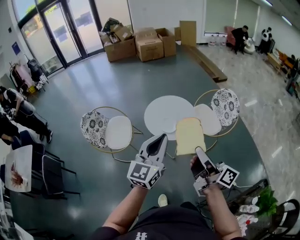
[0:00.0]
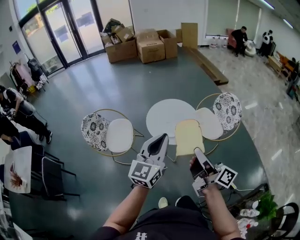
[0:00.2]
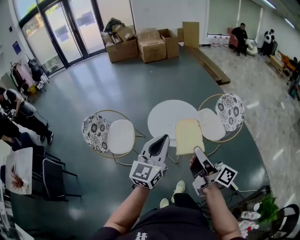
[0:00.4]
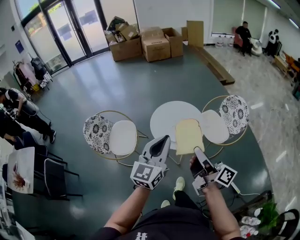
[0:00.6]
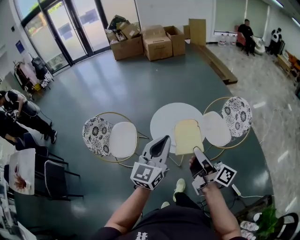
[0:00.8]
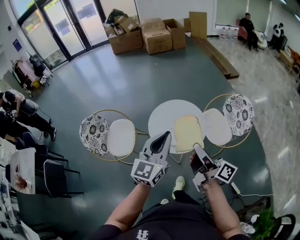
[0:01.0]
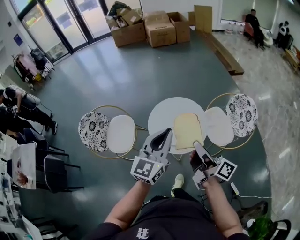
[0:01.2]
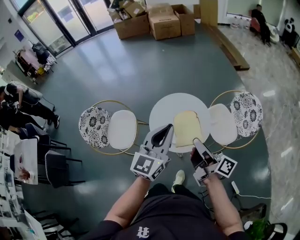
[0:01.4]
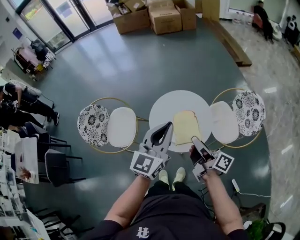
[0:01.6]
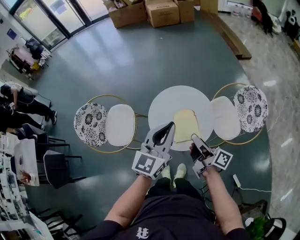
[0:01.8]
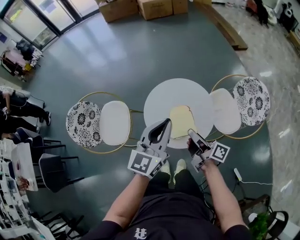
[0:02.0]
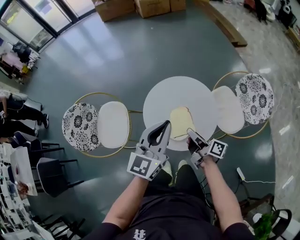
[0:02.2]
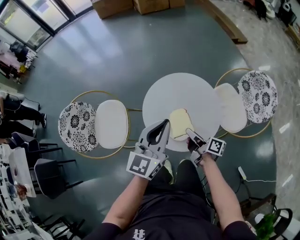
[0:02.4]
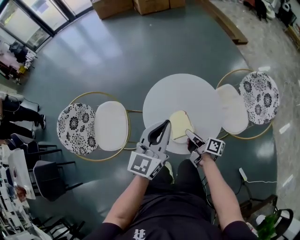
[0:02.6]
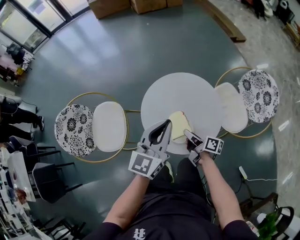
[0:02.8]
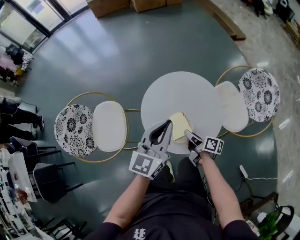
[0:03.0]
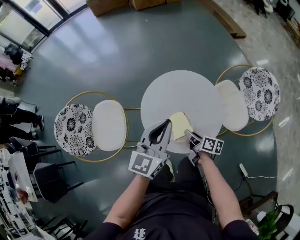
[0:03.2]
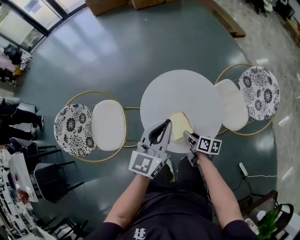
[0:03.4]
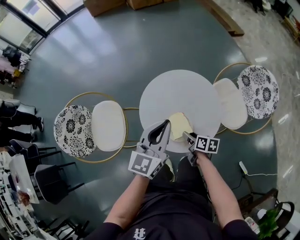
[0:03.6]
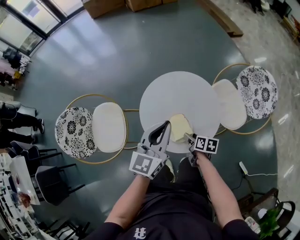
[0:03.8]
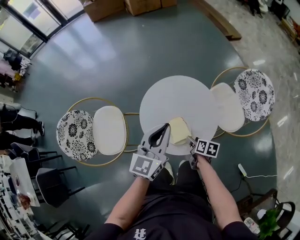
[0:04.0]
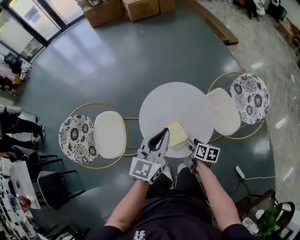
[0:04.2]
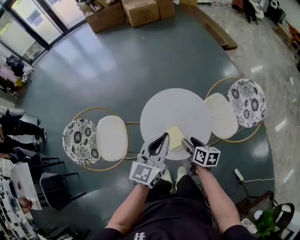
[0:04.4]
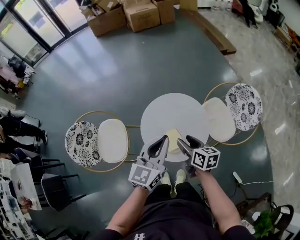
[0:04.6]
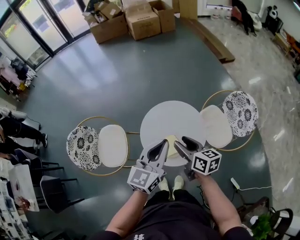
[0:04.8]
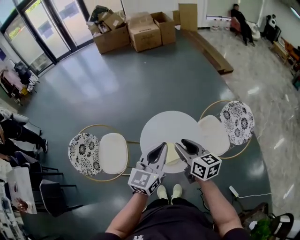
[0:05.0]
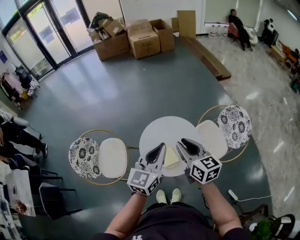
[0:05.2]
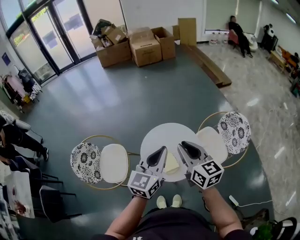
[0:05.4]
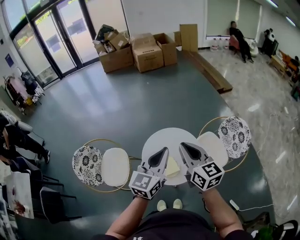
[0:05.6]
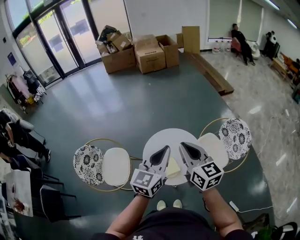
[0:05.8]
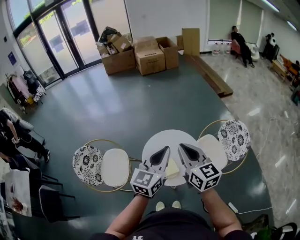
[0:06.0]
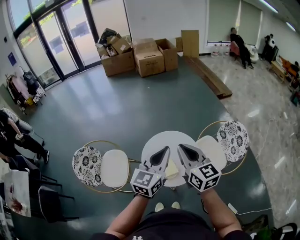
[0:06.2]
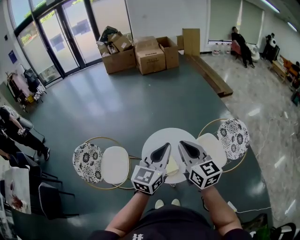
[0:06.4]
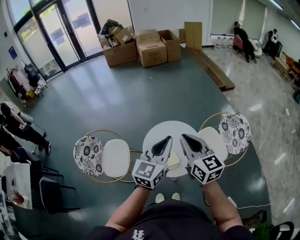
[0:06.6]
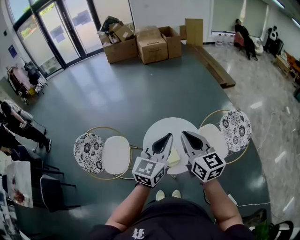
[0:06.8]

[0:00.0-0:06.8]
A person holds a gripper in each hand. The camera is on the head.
0:00.0 to 0:01.4: Both grippers move forward, approximately 25 cm.
0:01.4 to 0:02.8: The right gripper goes some 40 cm downward, and swivels some 30 degrees, while the left gripper goes some 25 cm downward and forward.
0:02.8 to 0:04.0: The right gripper ends up roughly 5 cm from where it was, tilts its fingers about 30 degrees downward, and opens.
0:04.0 to 0:05.4: The right gripper travels upward by roughly 50 cm, tilts its fingers roughly 40 degrees upward, and closes, while the left gripper goes some 20 cm upward.
0:05.4 to 0:06.8: The right gripper shifts by roughly 5 cm.

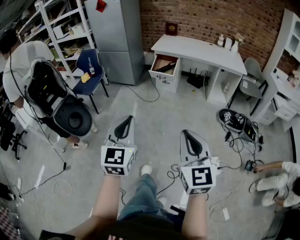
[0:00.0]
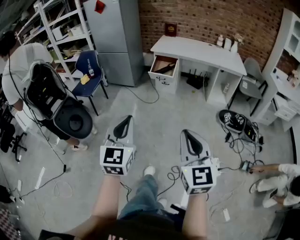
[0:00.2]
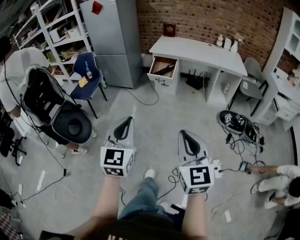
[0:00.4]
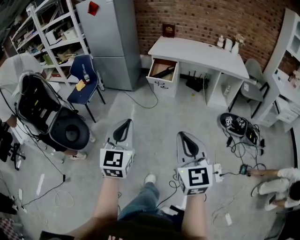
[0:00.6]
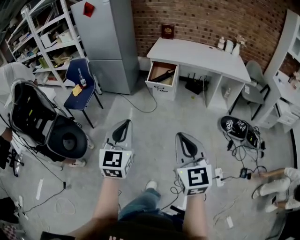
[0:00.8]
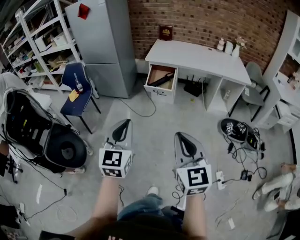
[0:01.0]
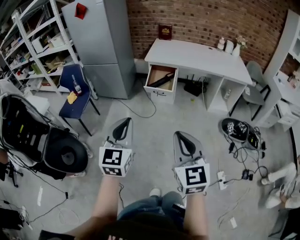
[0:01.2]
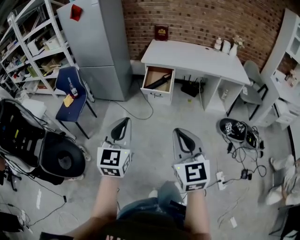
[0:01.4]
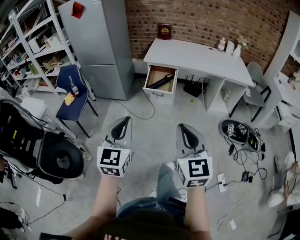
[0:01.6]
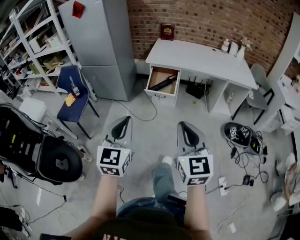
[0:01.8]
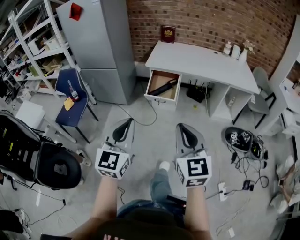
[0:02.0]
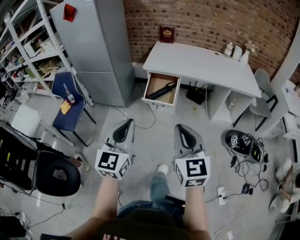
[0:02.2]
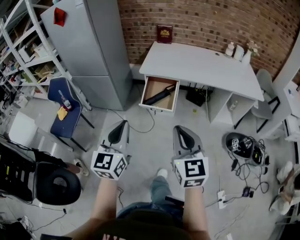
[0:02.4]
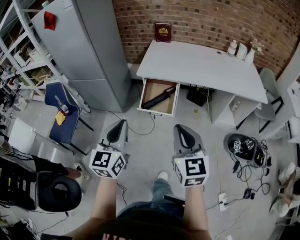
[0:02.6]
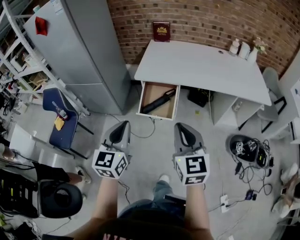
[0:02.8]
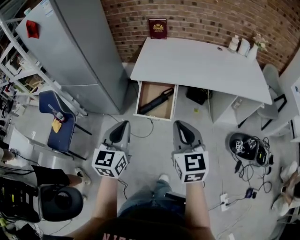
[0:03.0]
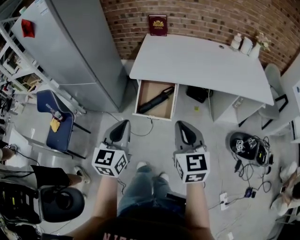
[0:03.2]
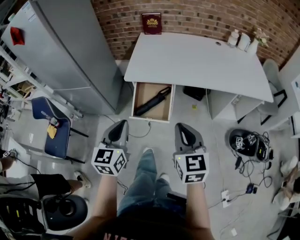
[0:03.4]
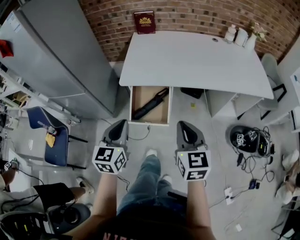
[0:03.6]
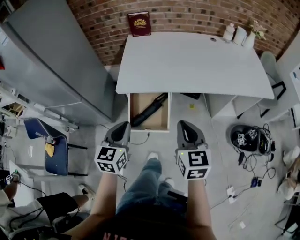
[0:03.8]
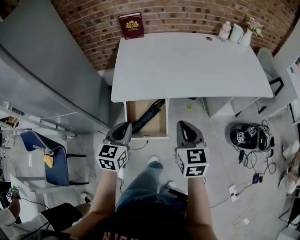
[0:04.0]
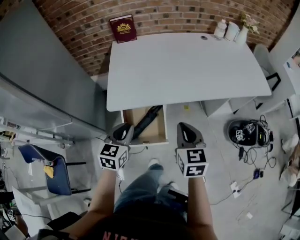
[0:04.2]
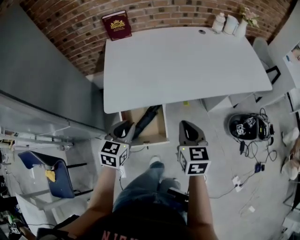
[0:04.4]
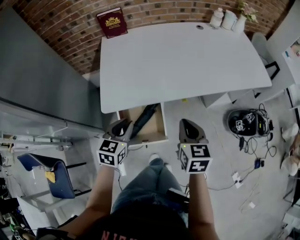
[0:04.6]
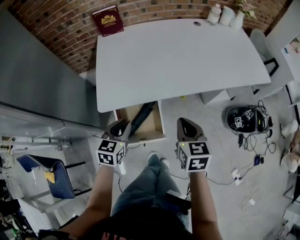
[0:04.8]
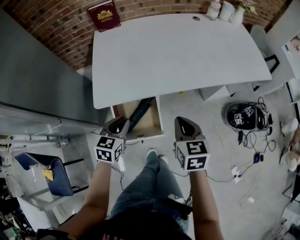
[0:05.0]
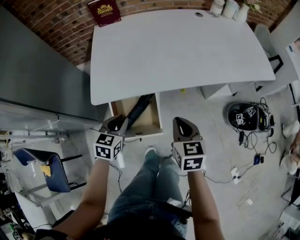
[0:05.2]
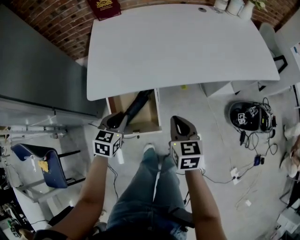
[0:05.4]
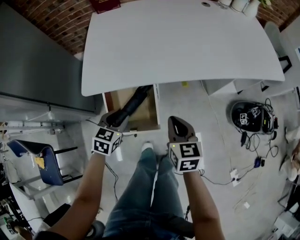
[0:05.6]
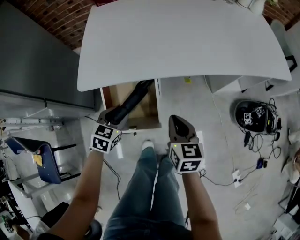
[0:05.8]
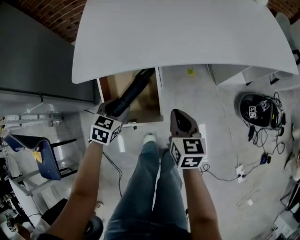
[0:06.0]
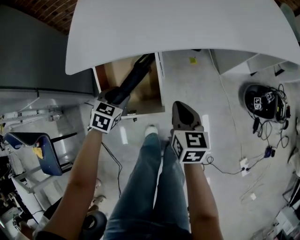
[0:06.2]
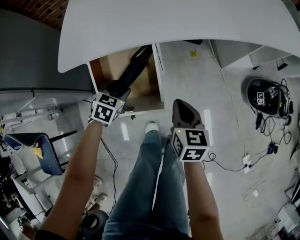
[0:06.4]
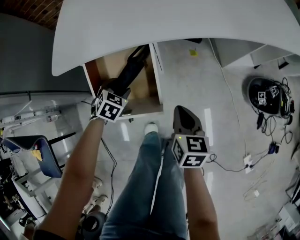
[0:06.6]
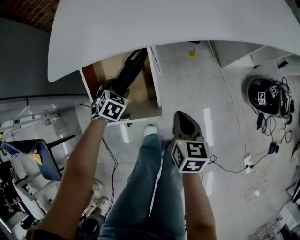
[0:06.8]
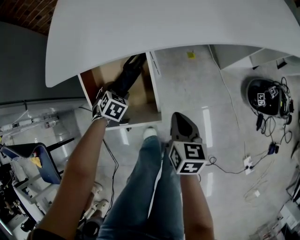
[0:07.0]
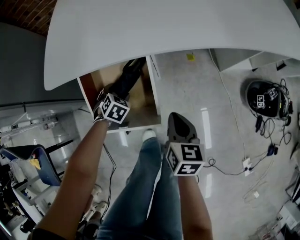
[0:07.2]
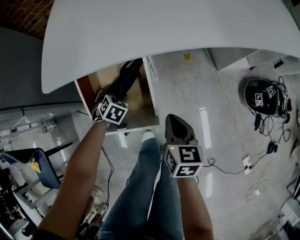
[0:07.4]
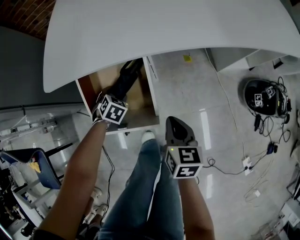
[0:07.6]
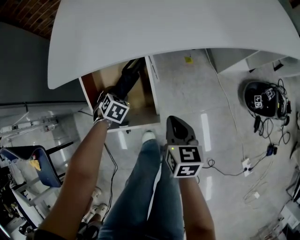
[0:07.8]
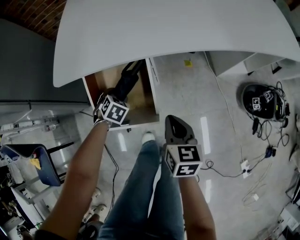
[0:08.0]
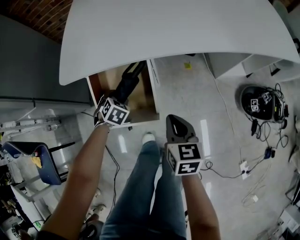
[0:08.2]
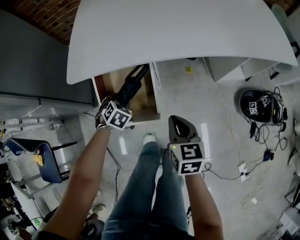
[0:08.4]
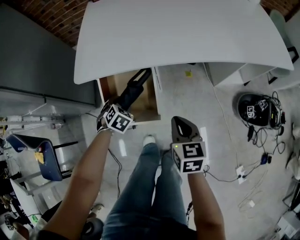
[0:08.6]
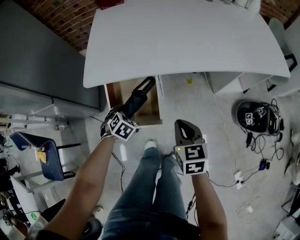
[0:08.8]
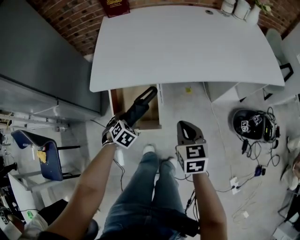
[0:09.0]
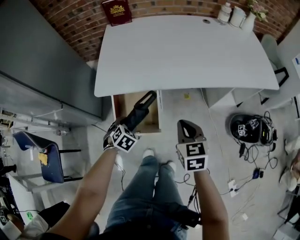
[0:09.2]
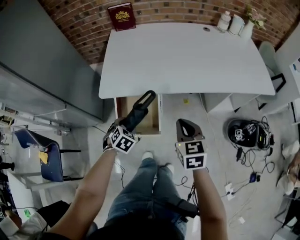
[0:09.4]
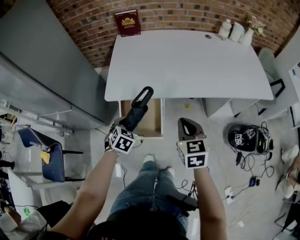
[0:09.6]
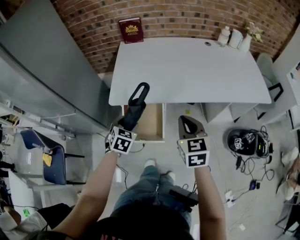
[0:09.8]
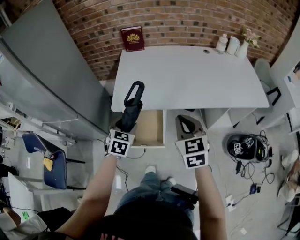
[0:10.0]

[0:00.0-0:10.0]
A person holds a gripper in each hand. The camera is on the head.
0:00.0 to 0:01.4: Both grippers travel together forward, approximately 35 cm.
0:01.4 to 0:02.8: Both grippers are carried forward, approximately 40 cm.
0:02.8 to 0:04.2: The right gripper shifts approximately 30 cm forward, and swivels roughly 30 degrees, while the left gripper is displaced forward and downward by approximately 40 cm, and changes its angle by roughly 30 degrees.
0:04.2 to 0:05.8: The grippers both shift downward by some 20 cm. The left gripper turns by some 20 degrees, and opens up.
0:05.8 to 0:07.2: The left gripper heads downward, covering roughly 20 cm, changes its angle by about 30 degrees, and opens, while the right gripper travels downward by approximately 15 cm.
0:07.2 to 0:08.6: The left gripper moves upward and backward, roughly 15 cm. Meanwhile the right gripper goes roughly 10 cm upward.
0:08.6 to 0:10.0: Both grippers move upward, approximately 30 cm. The left gripper changes its angle by approximately 30 degrees. Meanwhile the right gripper changes its angle by some 30 degrees.

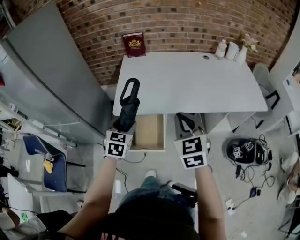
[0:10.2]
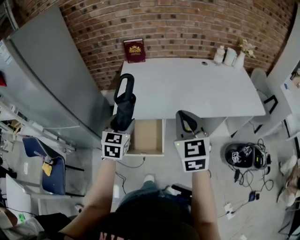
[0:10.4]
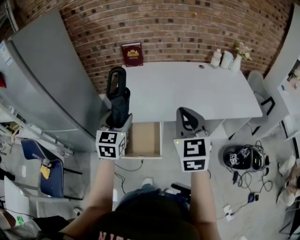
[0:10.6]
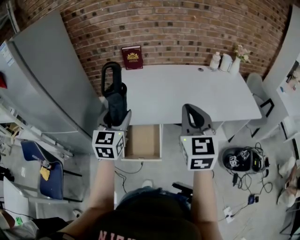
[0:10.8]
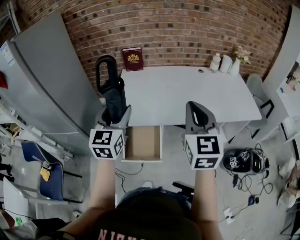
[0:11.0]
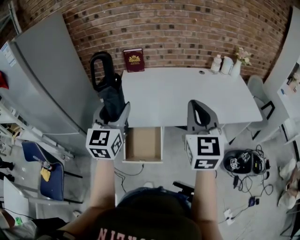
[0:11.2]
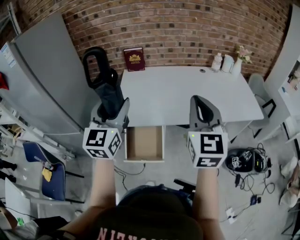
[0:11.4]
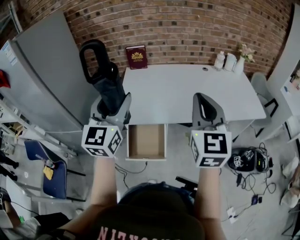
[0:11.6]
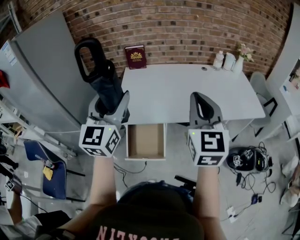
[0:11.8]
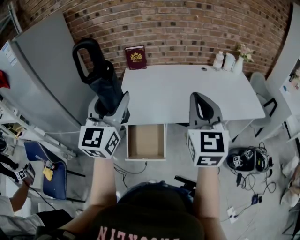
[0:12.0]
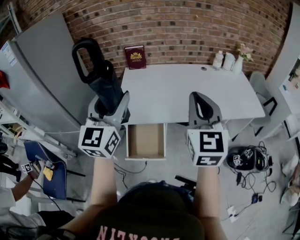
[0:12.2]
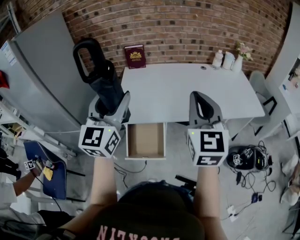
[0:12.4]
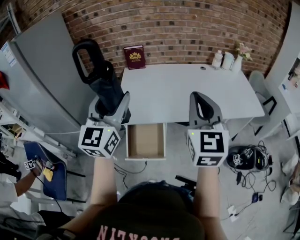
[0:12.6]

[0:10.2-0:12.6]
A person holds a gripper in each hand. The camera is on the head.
0:10.2 to 0:11.4: The right gripper goes roughly 15 cm upward, and turns by about 20 degrees. Meanwhile the left gripper heads upward, covering approximately 25 cm, and angles its fingers upward, by some 40 degrees.
0:11.4 to 0:12.6: There are only small adjustments of the grippers.

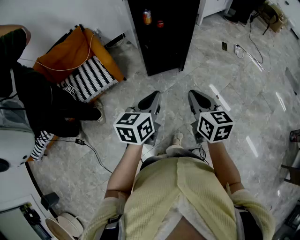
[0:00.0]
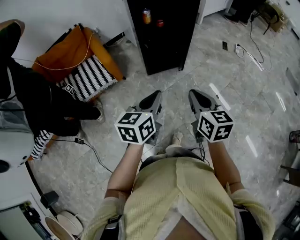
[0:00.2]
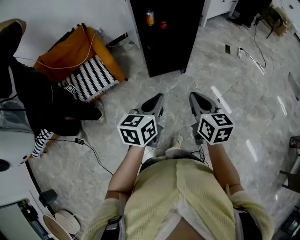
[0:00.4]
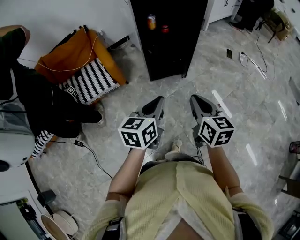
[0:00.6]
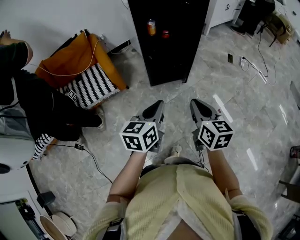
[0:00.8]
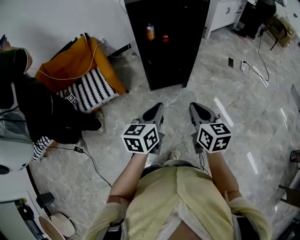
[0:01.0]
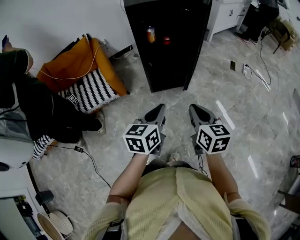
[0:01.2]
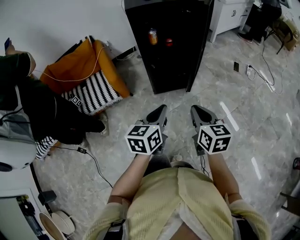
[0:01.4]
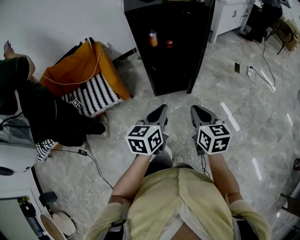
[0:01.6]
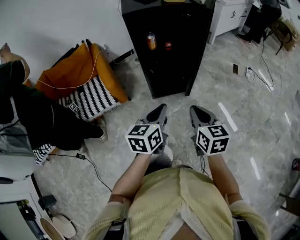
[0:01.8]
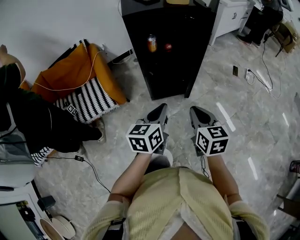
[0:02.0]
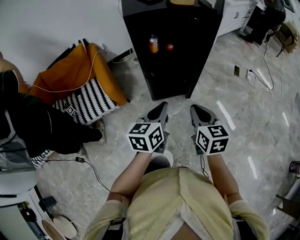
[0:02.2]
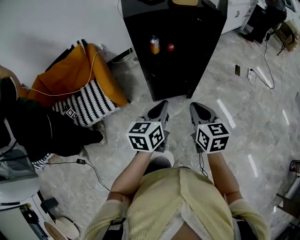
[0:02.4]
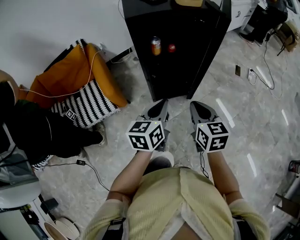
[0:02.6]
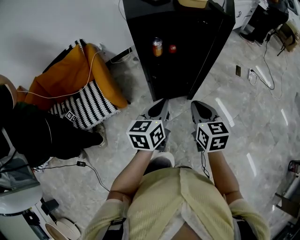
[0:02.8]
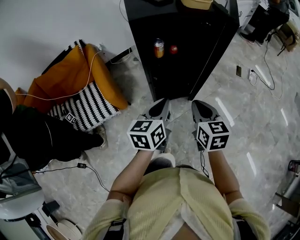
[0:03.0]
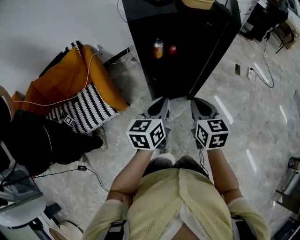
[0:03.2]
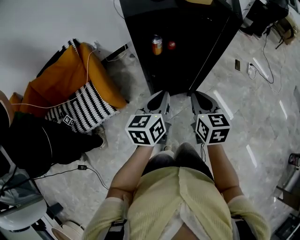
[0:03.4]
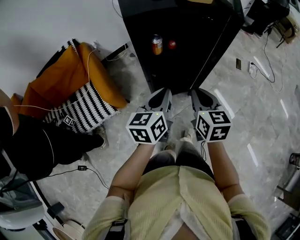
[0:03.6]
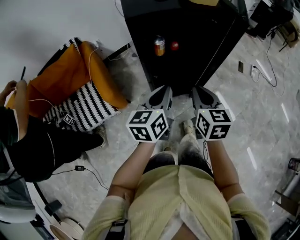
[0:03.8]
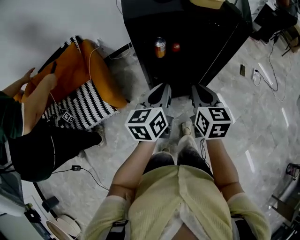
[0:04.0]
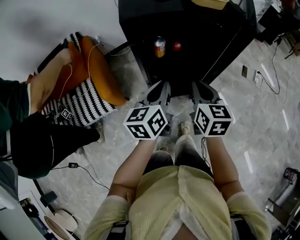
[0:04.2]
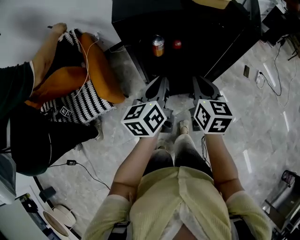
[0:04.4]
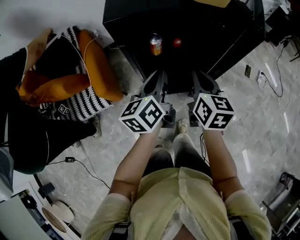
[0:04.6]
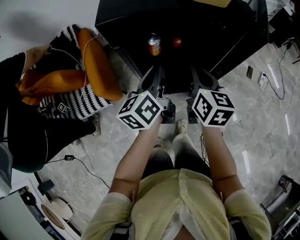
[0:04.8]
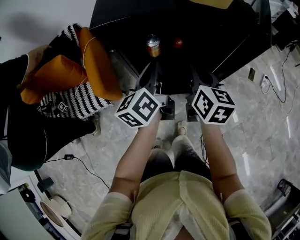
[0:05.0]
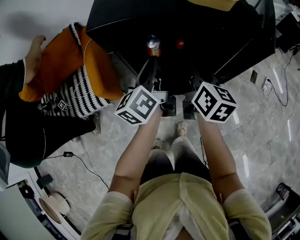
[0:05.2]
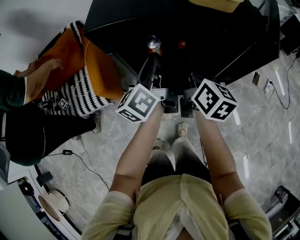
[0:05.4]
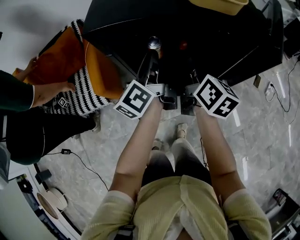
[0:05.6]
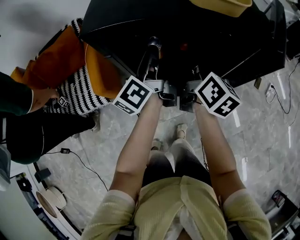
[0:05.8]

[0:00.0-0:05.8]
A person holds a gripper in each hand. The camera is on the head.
0:00.0 to 0:01.4: Both grippers travel together forward and to the right, some 10 cm.
0:01.4 to 0:02.8: The grippers both shift forward by some 20 cm.
0:02.8 to 0:04.4: The two grippers go roughly 15 cm forward.
0:04.4 to 0:05.8: The grippers both shift forward by roughly 15 cm. The right gripper changes its angle by approximately 30 degrees. Meanwhile the left gripper turns by some 30 degrees.
